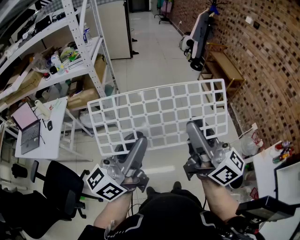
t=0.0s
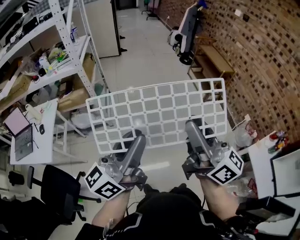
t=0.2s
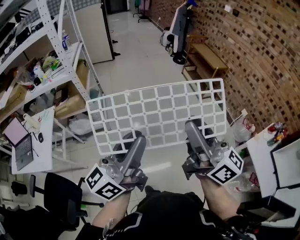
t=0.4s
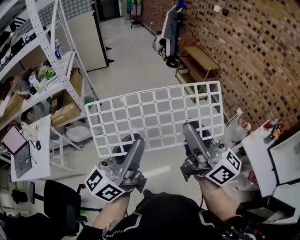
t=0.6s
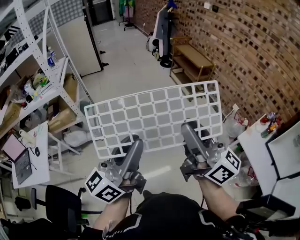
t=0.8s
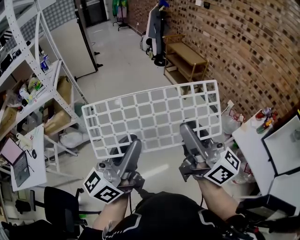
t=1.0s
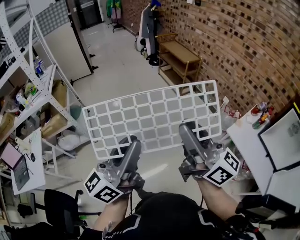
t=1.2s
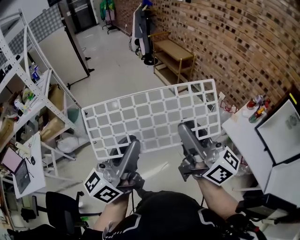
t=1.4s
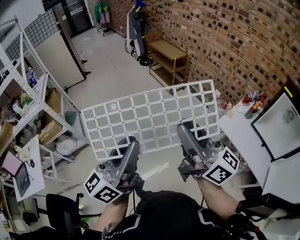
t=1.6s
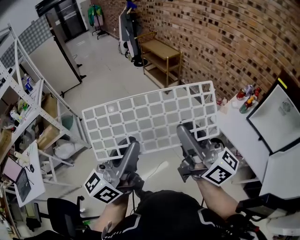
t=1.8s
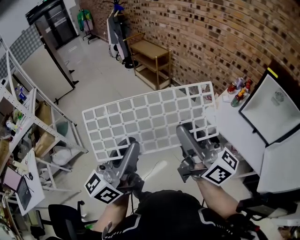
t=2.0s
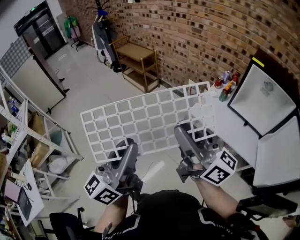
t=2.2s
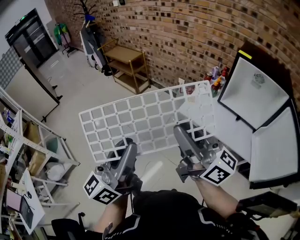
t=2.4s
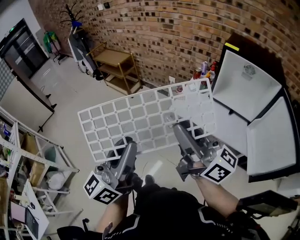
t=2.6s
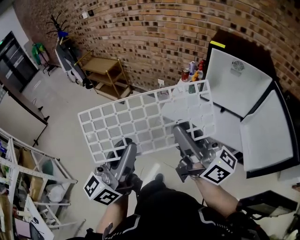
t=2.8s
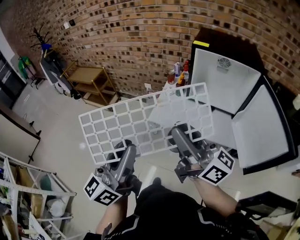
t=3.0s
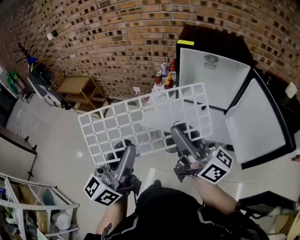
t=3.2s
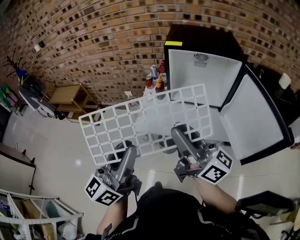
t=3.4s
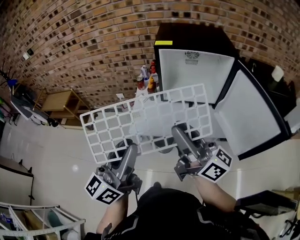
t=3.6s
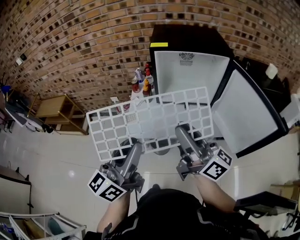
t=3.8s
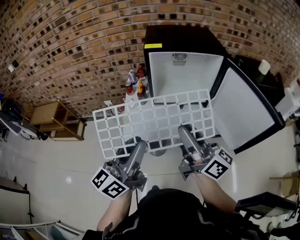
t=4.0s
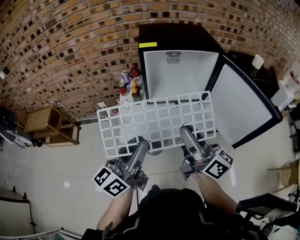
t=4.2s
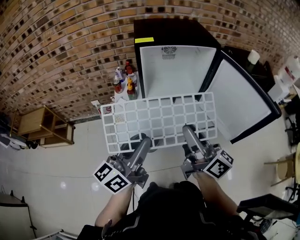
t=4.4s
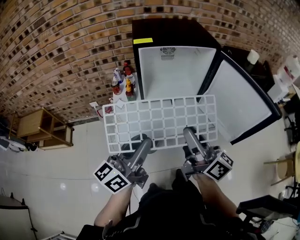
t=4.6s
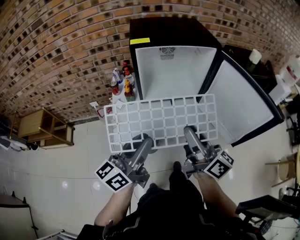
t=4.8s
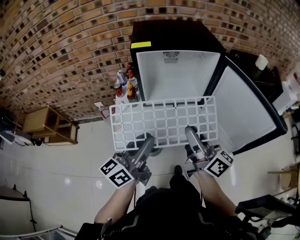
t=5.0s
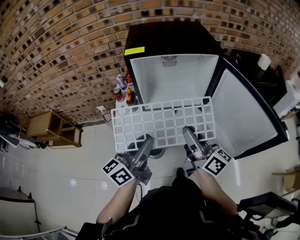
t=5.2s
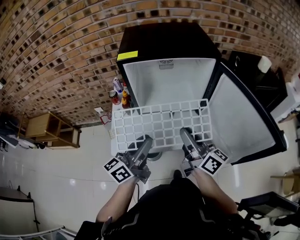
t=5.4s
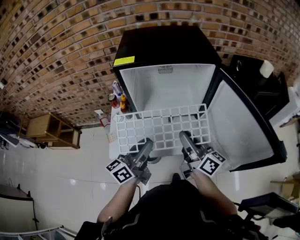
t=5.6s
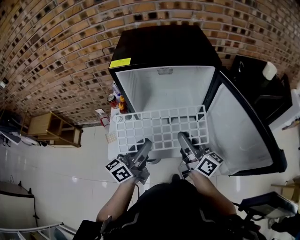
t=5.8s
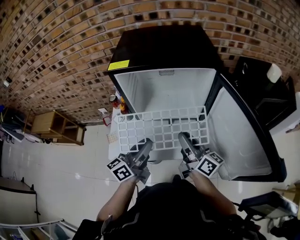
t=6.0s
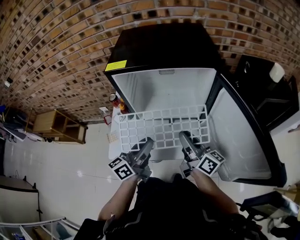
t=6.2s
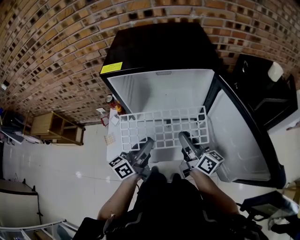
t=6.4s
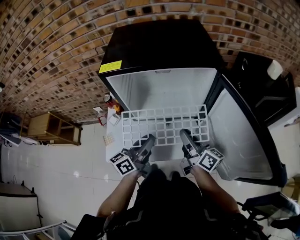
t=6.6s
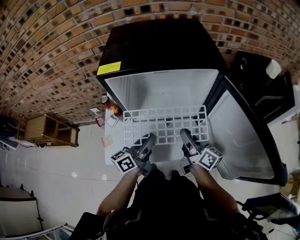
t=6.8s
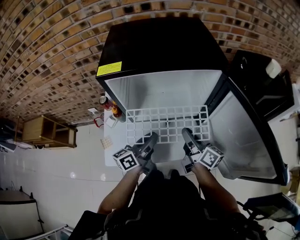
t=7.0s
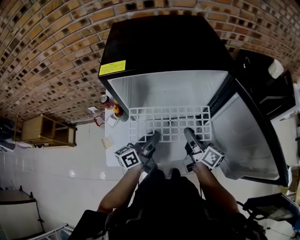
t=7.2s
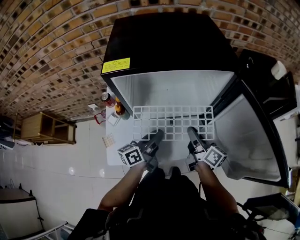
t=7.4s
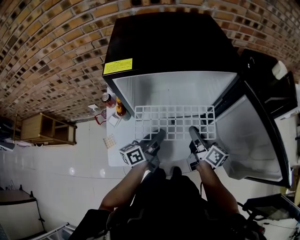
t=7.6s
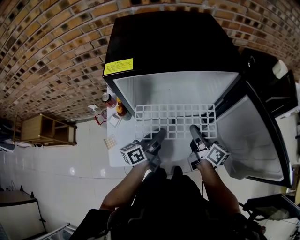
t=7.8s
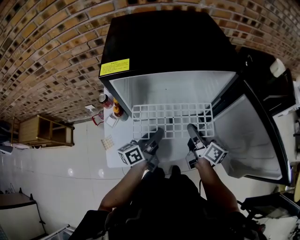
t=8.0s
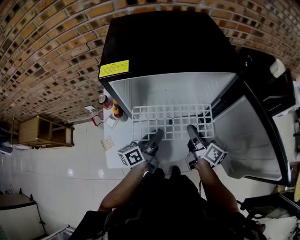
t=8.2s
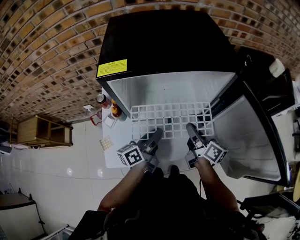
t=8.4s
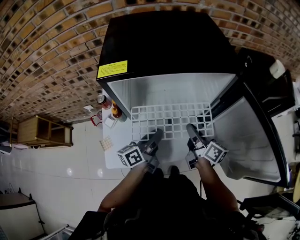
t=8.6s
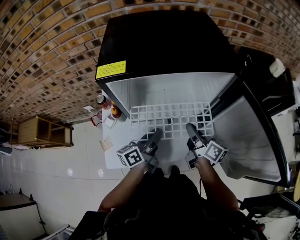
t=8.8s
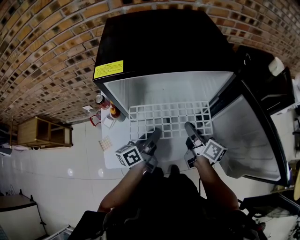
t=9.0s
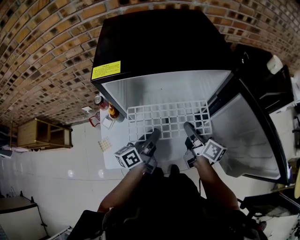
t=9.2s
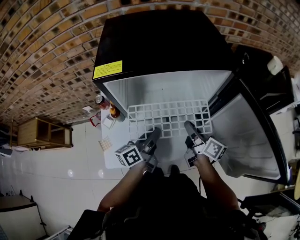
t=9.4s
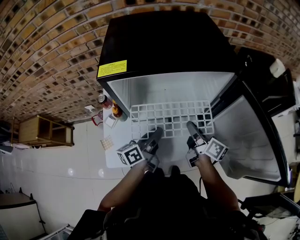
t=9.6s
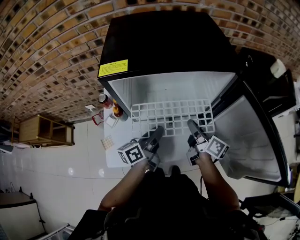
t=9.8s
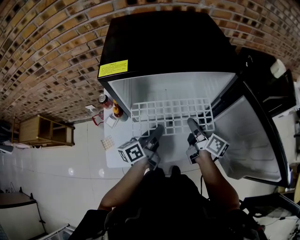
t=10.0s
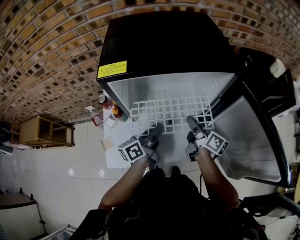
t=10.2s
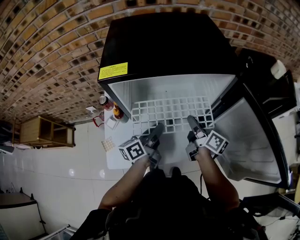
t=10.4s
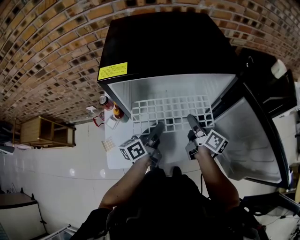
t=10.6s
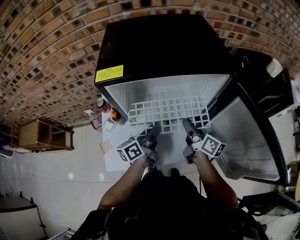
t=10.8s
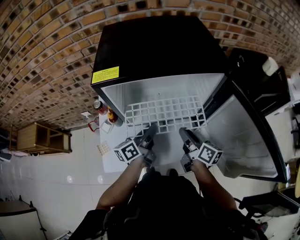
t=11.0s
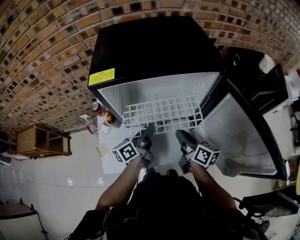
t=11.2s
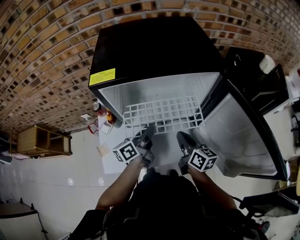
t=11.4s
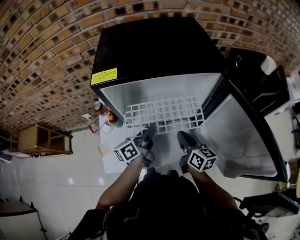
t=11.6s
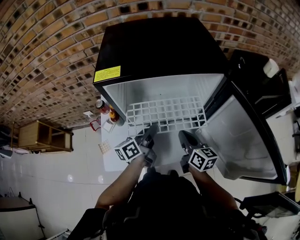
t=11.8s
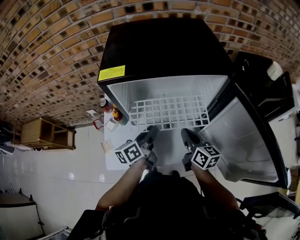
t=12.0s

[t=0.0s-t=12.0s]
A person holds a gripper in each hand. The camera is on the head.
t=0.0s to t=1.6s: The grippers both shift to the right by roughly 30 cm.
t=1.6s to t=3.0s: The right gripper moves roughly 35 cm, and changes its angle by roughly 30 degrees; the left gripper shifts by approximately 35 cm, and changes its angle by about 30 degrees.
t=3.0s to t=4.4s: The left gripper shifts by some 20 cm, and turns by roughly 40 degrees. Meanwhile the right gripper ends up roughly 15 cm from where it was, and turns by some 40 degrees.
t=4.4s to t=6.0s: The left gripper travels forward, to the right and downward by roughly 25 cm. Meanwhile the right gripper shifts roughly 25 cm forward, downward and to the right.
t=6.0s to t=7.6s: The right gripper is displaced downward and forward by approximately 10 cm, while the left gripper moves forward and downward, approximately 15 cm.
t=7.6s to t=10.4s: The grippers stay close to where they were, moving slightly.
t=10.4s to t=12.0s: The right gripper heads backward, covering some 5 cm, and rotates approximately 30 degrees.

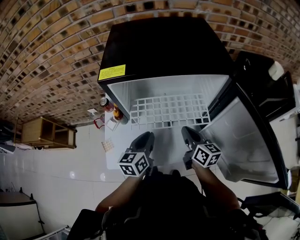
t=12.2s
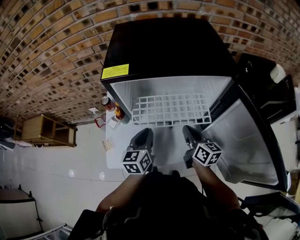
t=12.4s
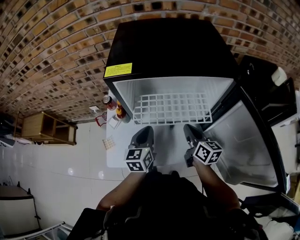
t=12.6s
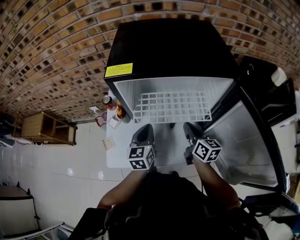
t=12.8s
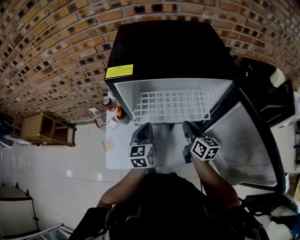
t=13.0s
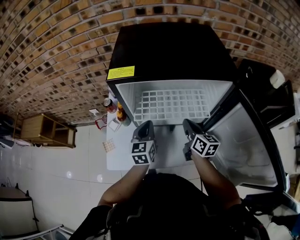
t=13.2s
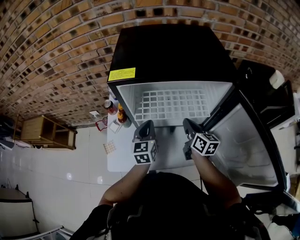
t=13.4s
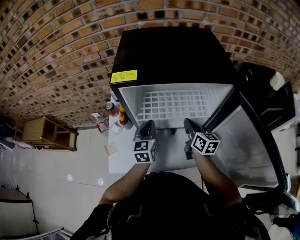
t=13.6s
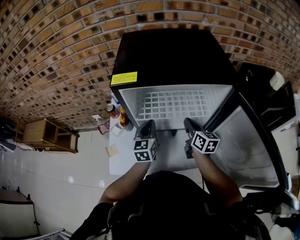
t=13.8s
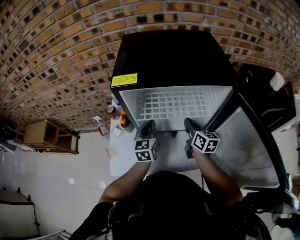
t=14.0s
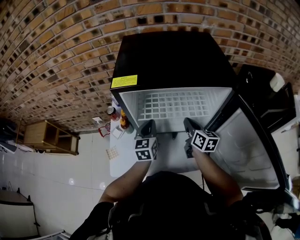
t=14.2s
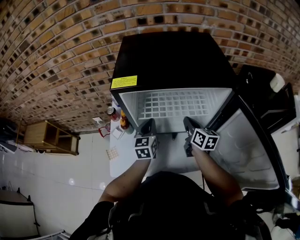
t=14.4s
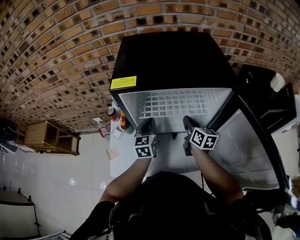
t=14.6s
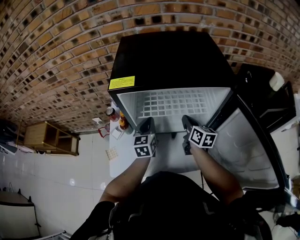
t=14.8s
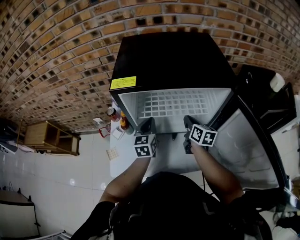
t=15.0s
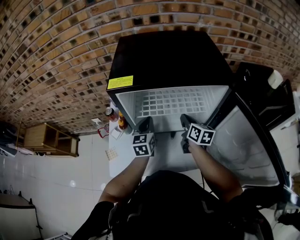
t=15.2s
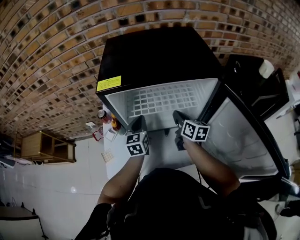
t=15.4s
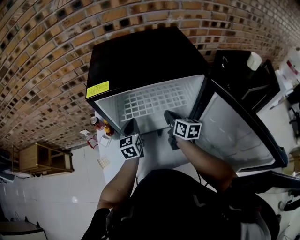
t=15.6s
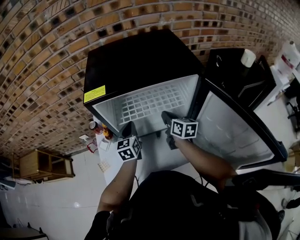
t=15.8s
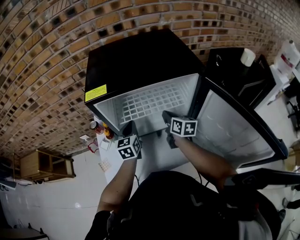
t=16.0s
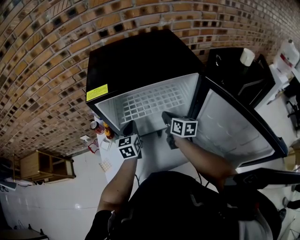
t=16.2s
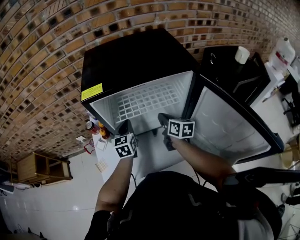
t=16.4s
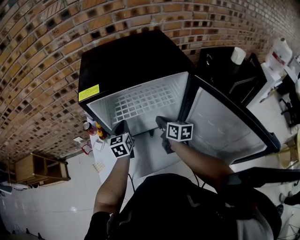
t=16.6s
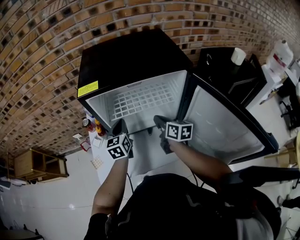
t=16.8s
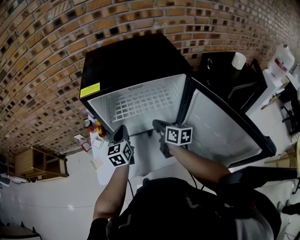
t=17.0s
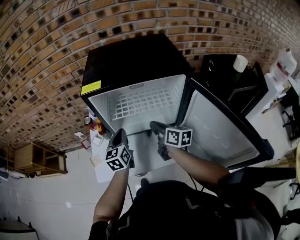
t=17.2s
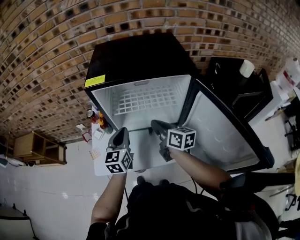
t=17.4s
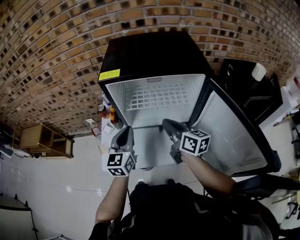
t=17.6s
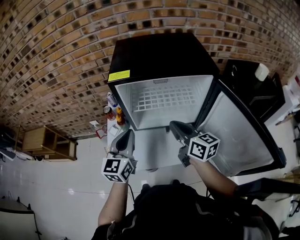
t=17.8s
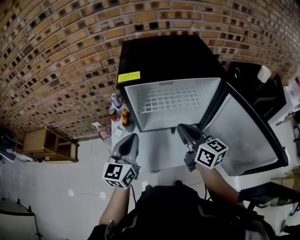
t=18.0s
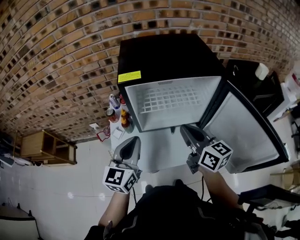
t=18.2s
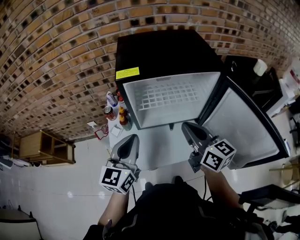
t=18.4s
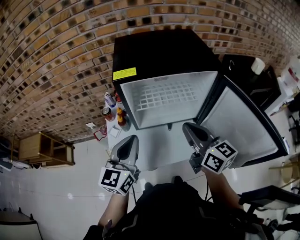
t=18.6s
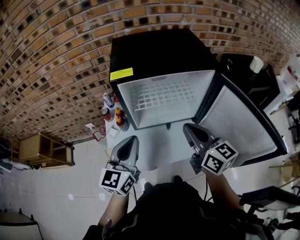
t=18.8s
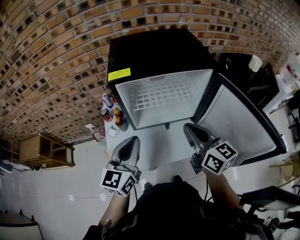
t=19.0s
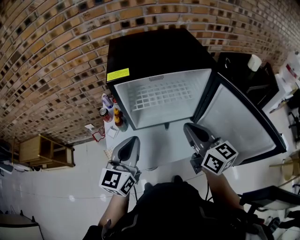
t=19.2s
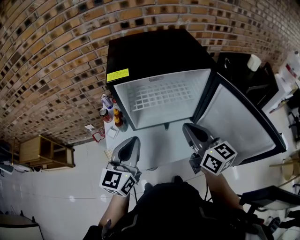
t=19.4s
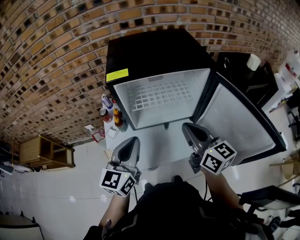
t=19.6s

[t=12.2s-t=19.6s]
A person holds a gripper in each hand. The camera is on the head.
t=12.2s to t=13.6s: The grippers both shift forward by about 5 cm. The left gripper rotates roughly 20 degrees.
t=13.6s to t=16.6s: The grippers stay close to where they were, moving slightly.
t=16.6s to t=18.2s: The left gripper shifts some 25 cm backward, upward and to the left, and turns by roughly 20 degrees, while the right gripper is displaced upward, backward and to the left by approximately 20 cm, and rotates about 20 degrees.
t=18.2s to t=19.6s: The grippers stay close to where they were, moving slightly.

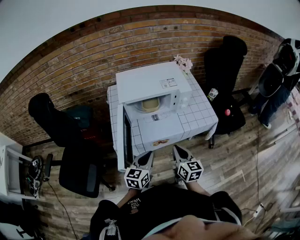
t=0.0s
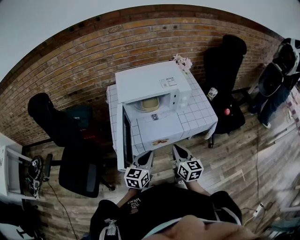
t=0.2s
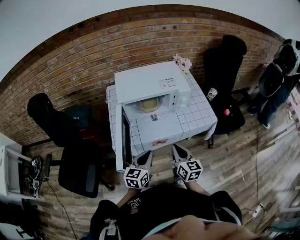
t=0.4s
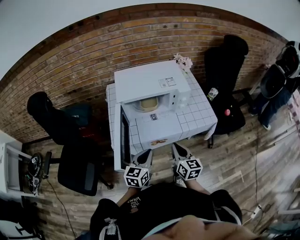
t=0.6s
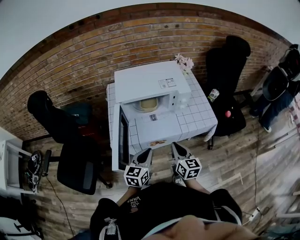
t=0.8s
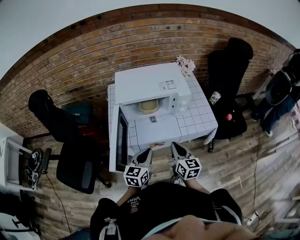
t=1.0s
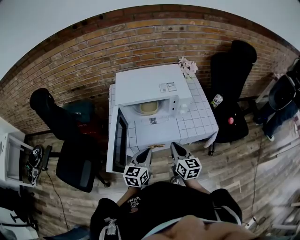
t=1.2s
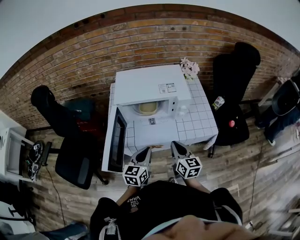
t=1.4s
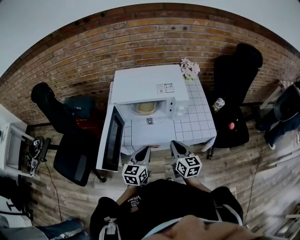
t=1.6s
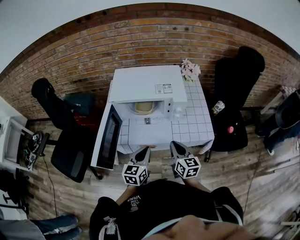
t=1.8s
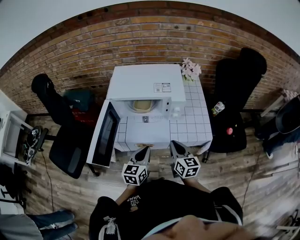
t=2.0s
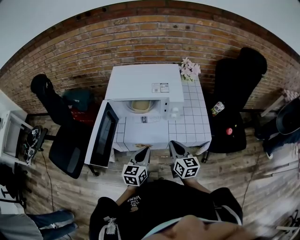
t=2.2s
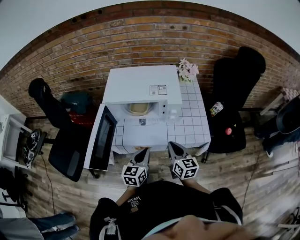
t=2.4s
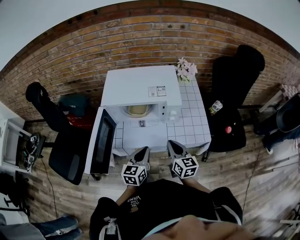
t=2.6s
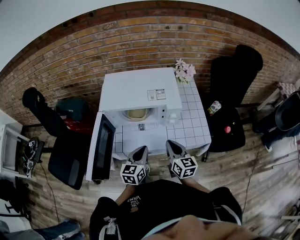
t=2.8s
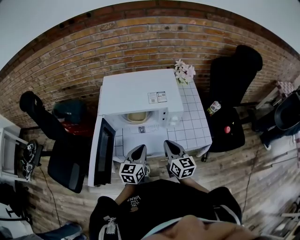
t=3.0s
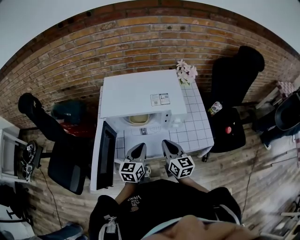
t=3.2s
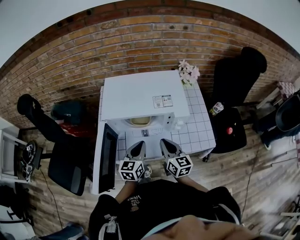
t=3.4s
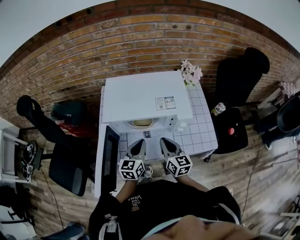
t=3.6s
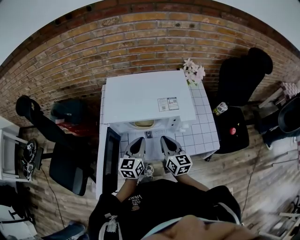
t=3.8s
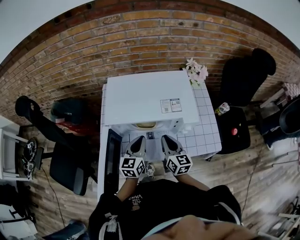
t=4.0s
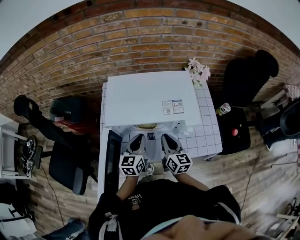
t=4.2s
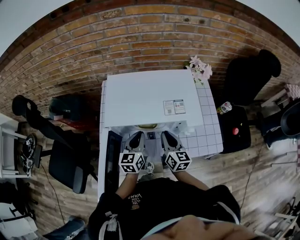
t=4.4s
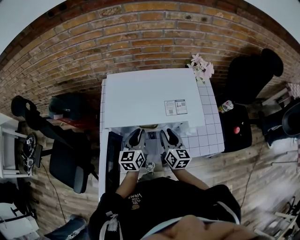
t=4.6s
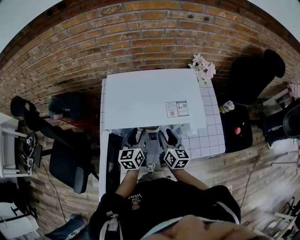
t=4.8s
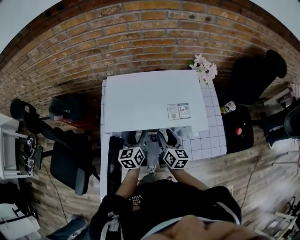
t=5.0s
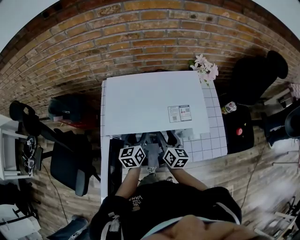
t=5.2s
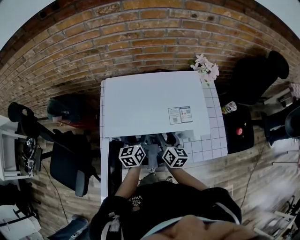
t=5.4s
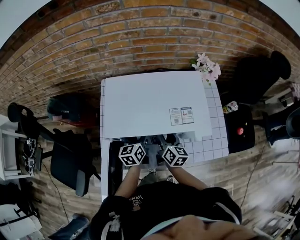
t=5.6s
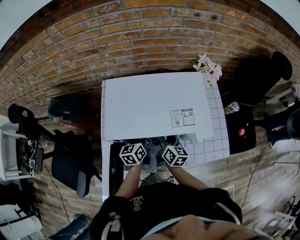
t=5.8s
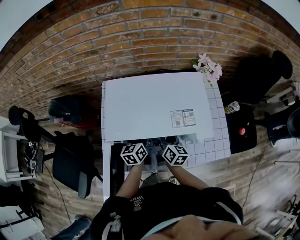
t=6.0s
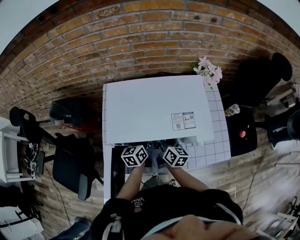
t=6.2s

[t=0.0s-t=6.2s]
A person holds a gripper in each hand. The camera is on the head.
t=0.0s to t=1.6s: Both grippers travel together forward and to the right, approximately 10 cm.
t=1.6s to t=3.2s: The two grippers go approximately 10 cm forward.
t=3.2s to t=4.6s: The left gripper goes about 15 cm forward and to the left; the right gripper shifts roughly 15 cm forward and downward, and opens.
t=4.6s to t=6.2s: The left gripper heads forward and downward, covering some 10 cm, and opens up. Meanwhile the right gripper travels forward by about 5 cm, and opens its fingers.
